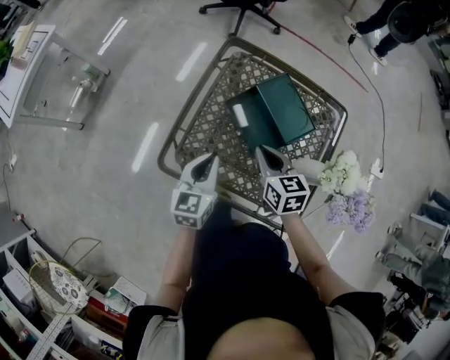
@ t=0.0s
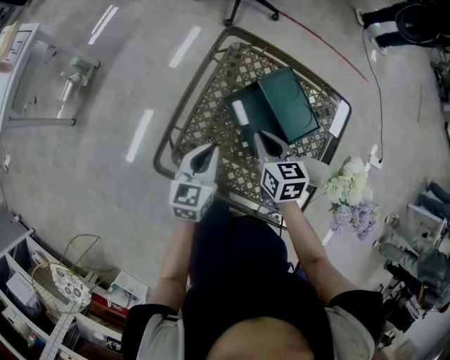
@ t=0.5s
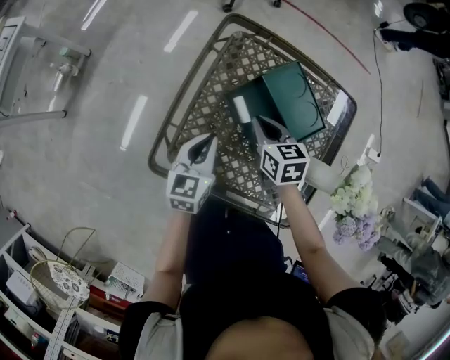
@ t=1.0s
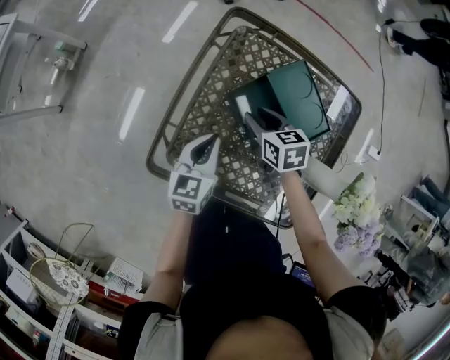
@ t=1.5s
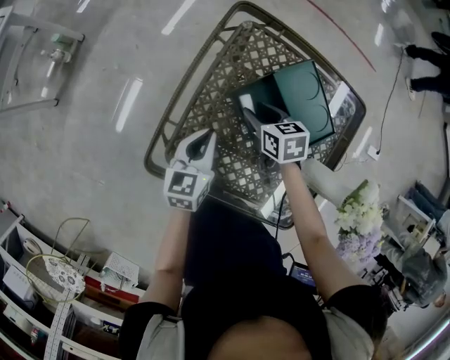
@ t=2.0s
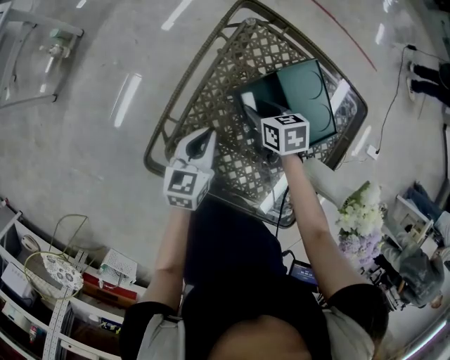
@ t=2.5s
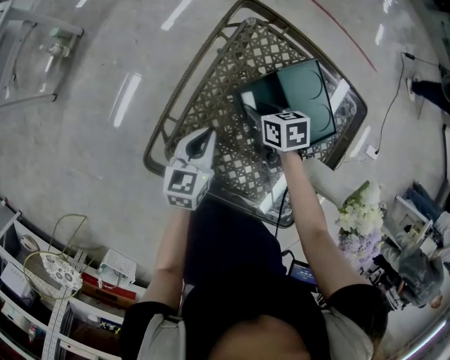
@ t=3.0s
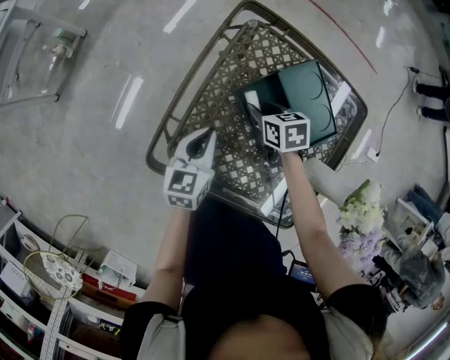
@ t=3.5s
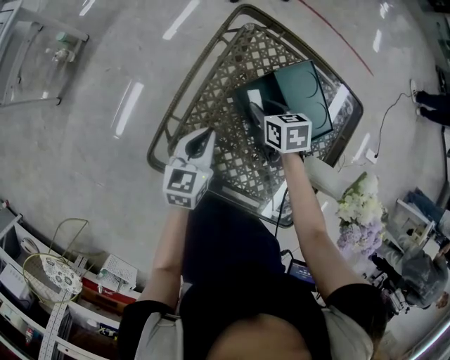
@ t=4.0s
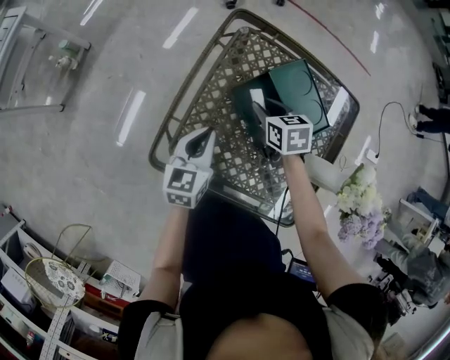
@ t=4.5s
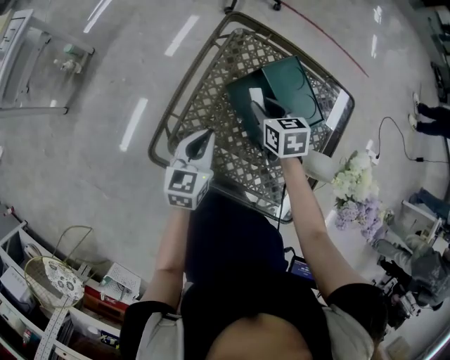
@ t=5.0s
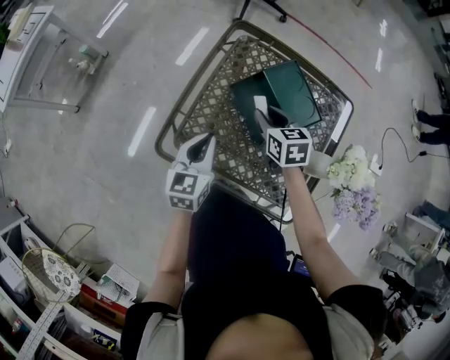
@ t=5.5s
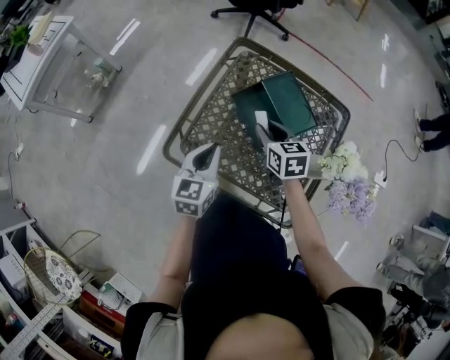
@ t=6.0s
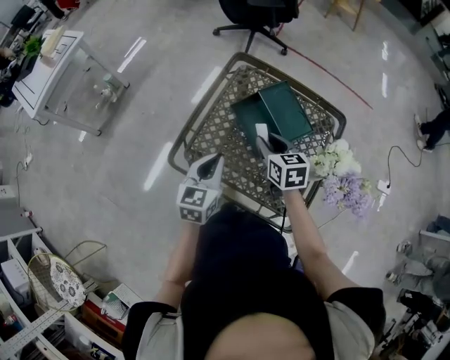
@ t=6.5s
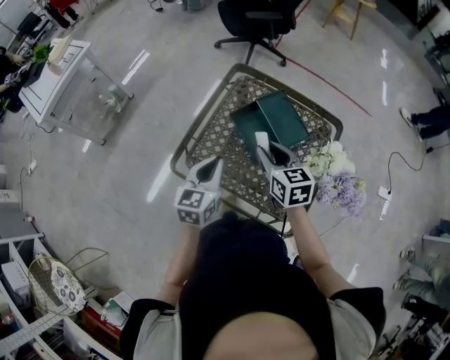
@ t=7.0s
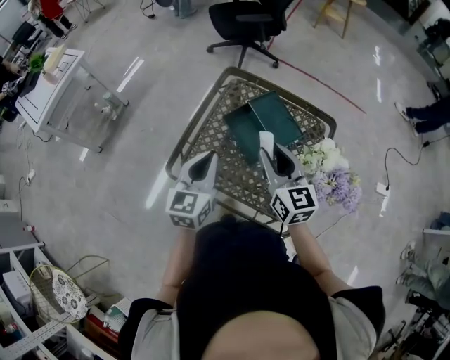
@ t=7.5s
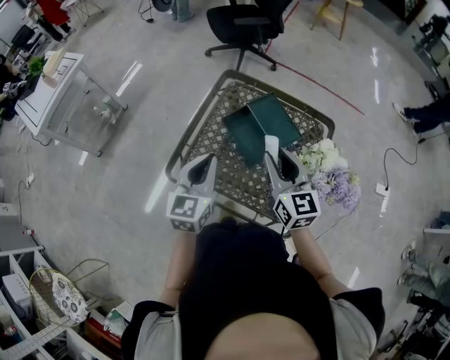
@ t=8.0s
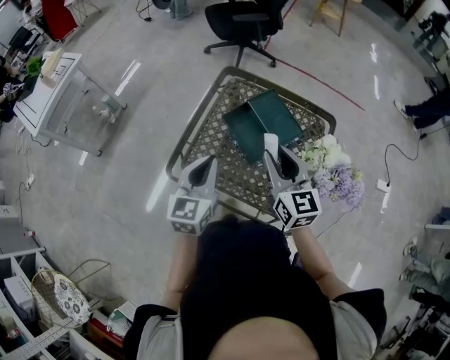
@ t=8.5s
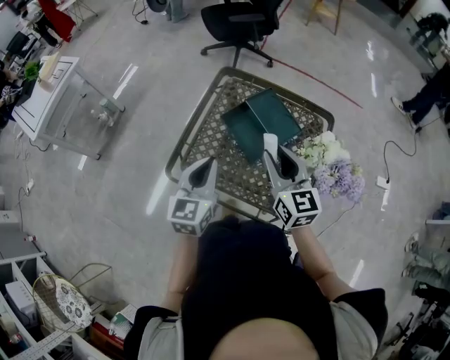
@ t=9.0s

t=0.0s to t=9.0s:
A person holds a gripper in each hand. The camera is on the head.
t=0.0s to t=2.0s: The two grippers go approximately 15 cm downward and forward. The right gripper opens its fingers.
t=2.0s to t=4.5s: There are only small adjustments of the grippers.
t=4.5s to t=7.0s: The two grippers go roughly 20 cm upward and backward. The right gripper turns by some 20 degrees.
t=7.0s to t=9.0s: The right gripper moves upward, approximately 5 cm, and turns by some 20 degrees.

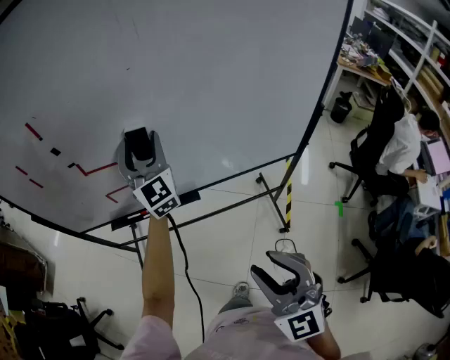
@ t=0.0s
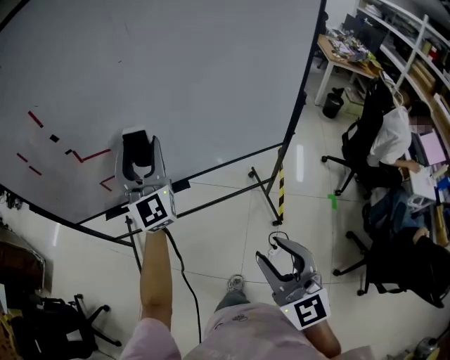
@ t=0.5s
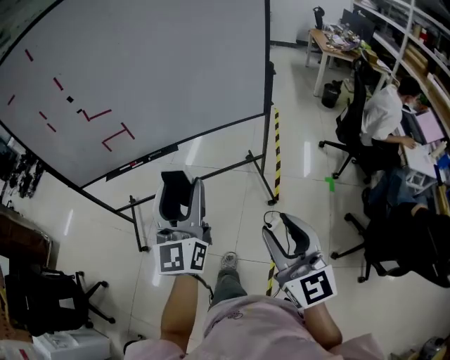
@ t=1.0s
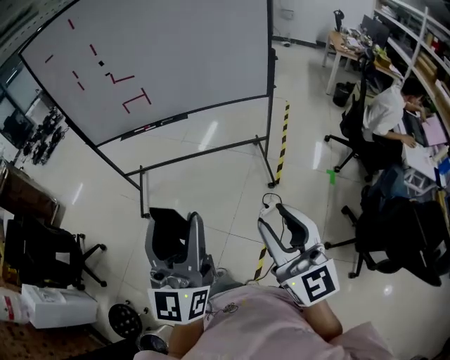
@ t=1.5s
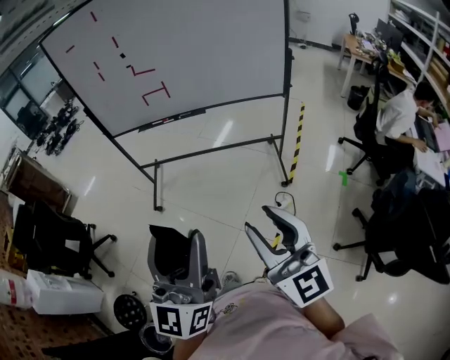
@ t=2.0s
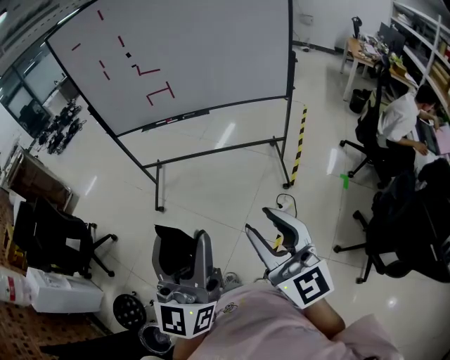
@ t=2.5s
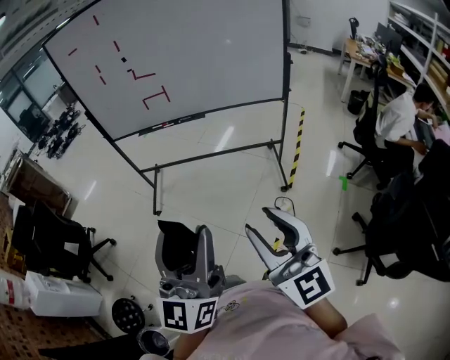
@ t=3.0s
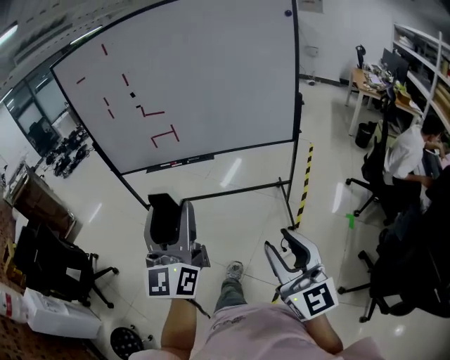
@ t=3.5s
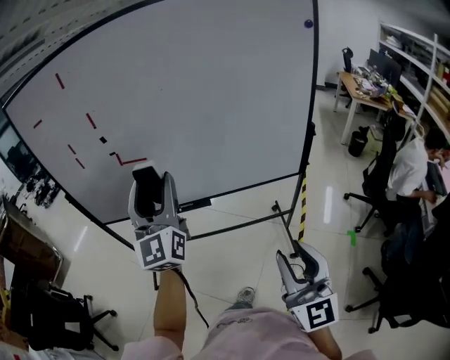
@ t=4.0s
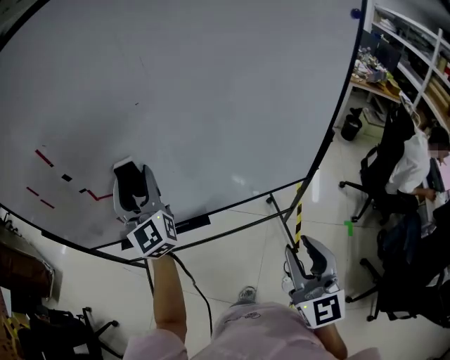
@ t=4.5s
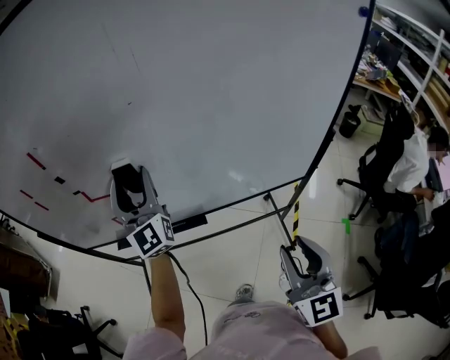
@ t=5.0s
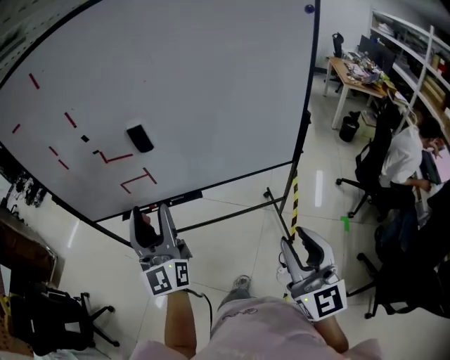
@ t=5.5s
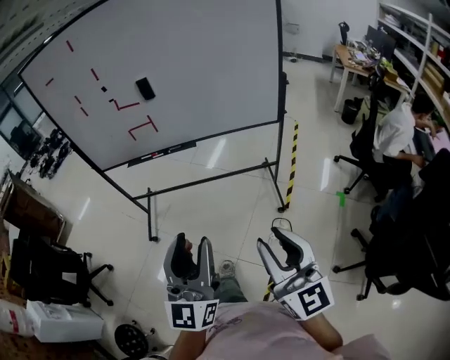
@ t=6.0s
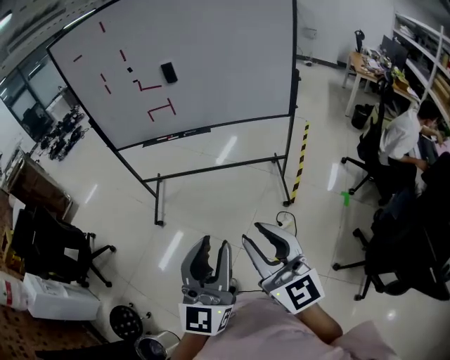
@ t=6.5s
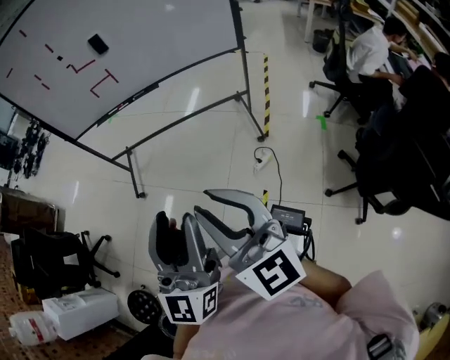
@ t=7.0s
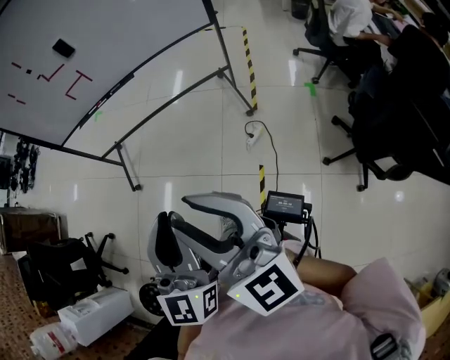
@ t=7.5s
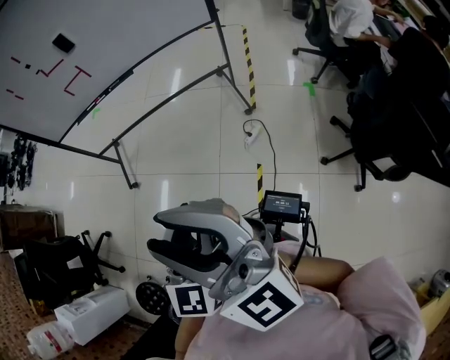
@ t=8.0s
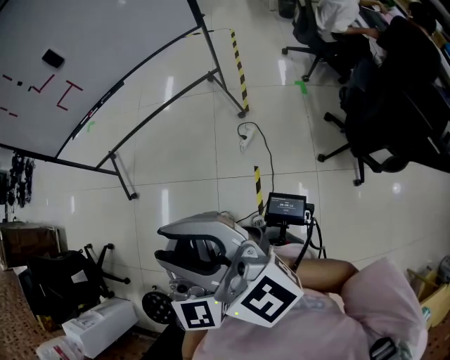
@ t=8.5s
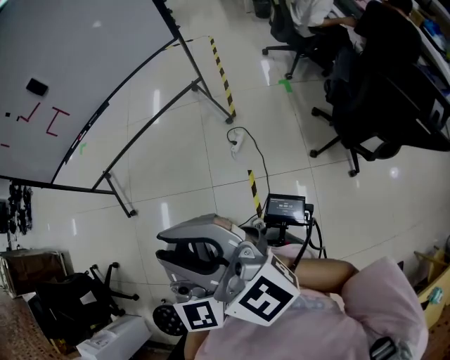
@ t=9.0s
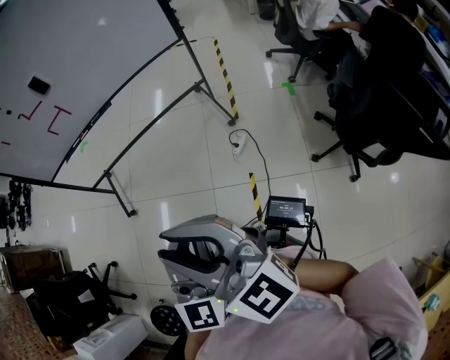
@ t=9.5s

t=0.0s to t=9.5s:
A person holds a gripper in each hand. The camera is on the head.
t=0.0s to t=2.0s: Both grippers are carried backward, roughly 60 cm. The right gripper changes its angle by approximately 30 degrees, while the left gripper rotates approximately 30 degrees.
t=2.0s to t=4.0s: The left gripper is displaced forward by roughly 50 cm. The right gripper travels forward by some 35 cm.
t=4.0s to t=5.5s: The right gripper travels forward and back again, approximately 20 cm each way. Meanwhile the left gripper travels downward by roughly 5 cm, and moves approximately 25 cm forward and comes back.
t=5.5s to t=7.5s: The pair of grippers is taken backward, approximately 50 cm. The left gripper rotates approximately 20 degrees, and closes.
t=7.5s to t=9.5s: The left gripper goes roughly 5 cm to the right.

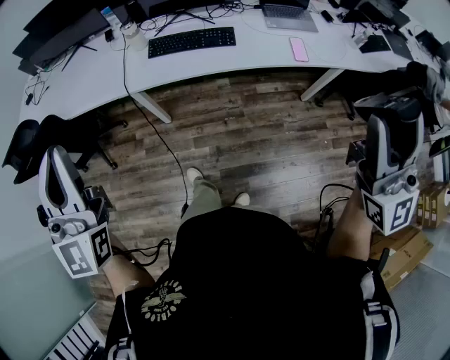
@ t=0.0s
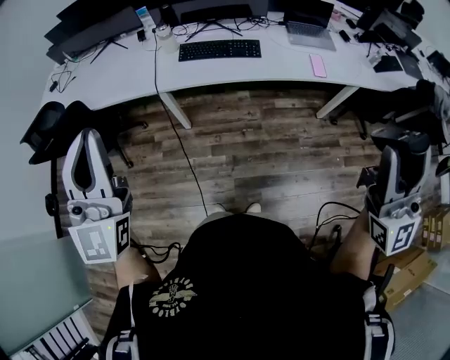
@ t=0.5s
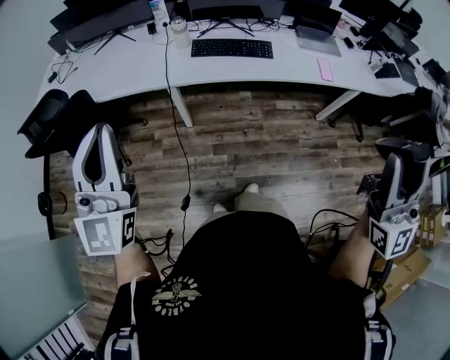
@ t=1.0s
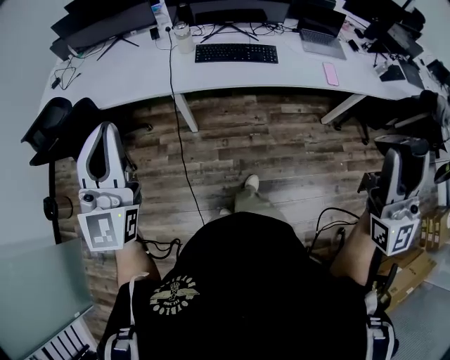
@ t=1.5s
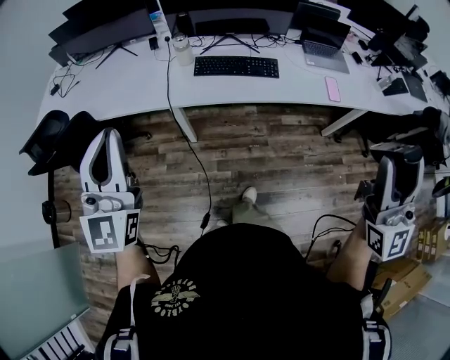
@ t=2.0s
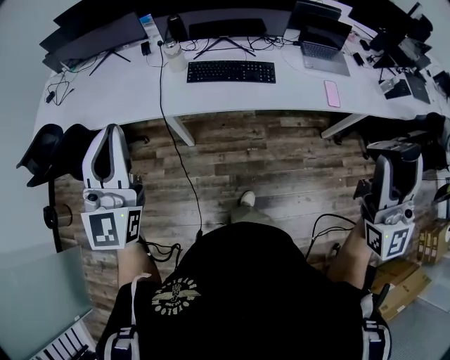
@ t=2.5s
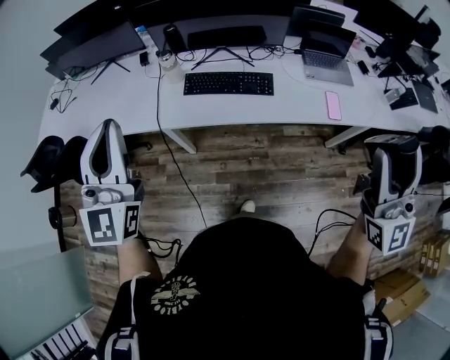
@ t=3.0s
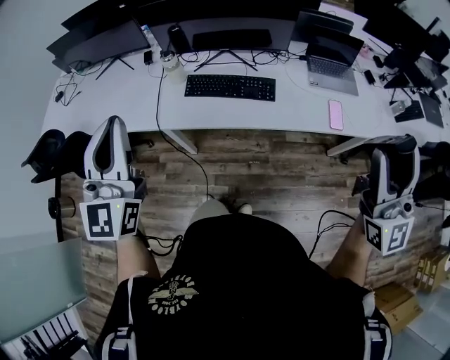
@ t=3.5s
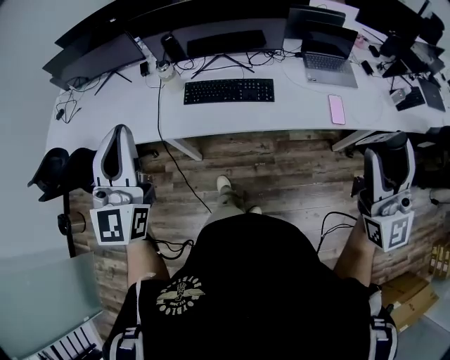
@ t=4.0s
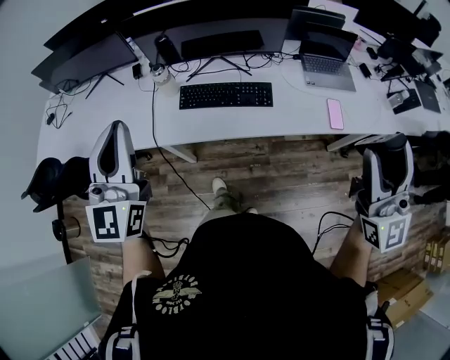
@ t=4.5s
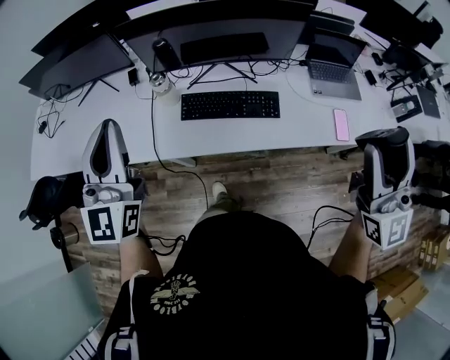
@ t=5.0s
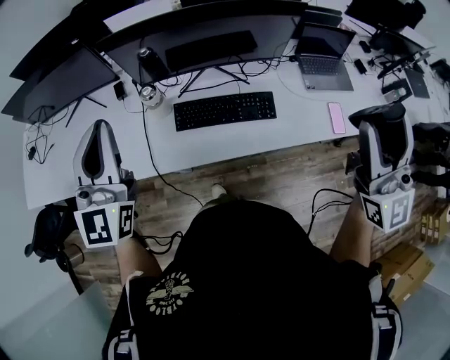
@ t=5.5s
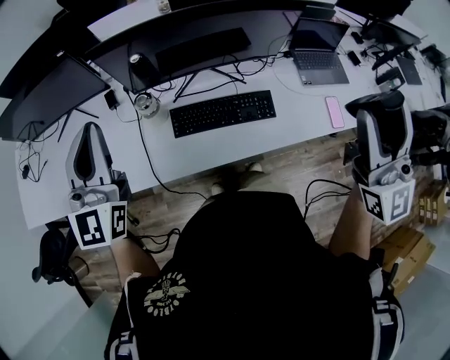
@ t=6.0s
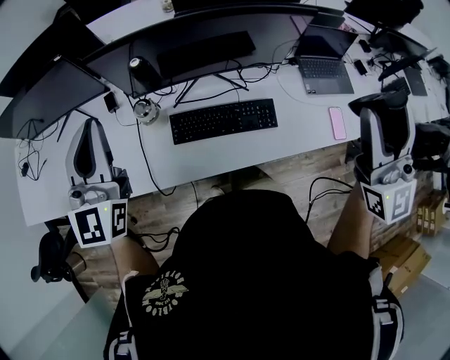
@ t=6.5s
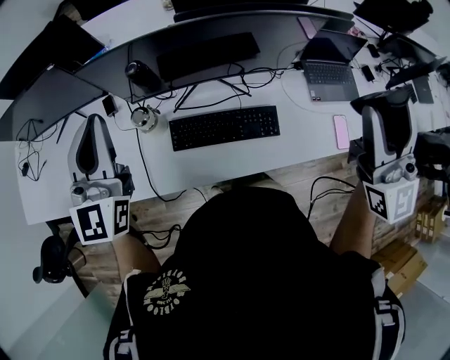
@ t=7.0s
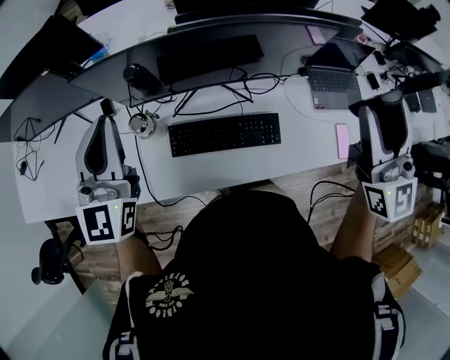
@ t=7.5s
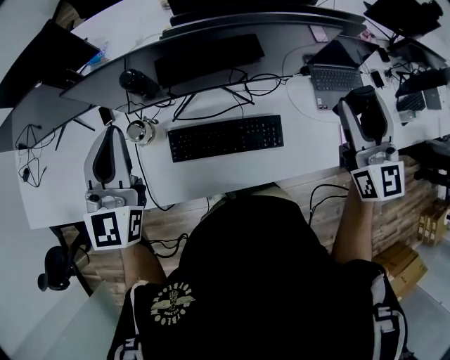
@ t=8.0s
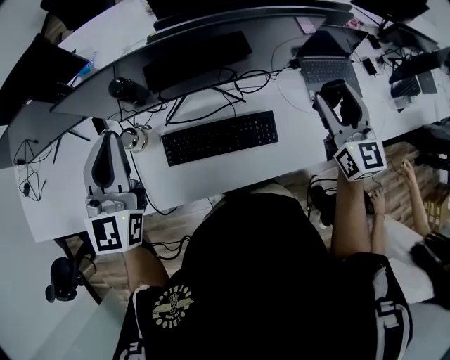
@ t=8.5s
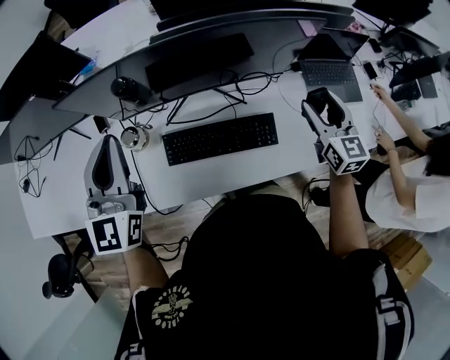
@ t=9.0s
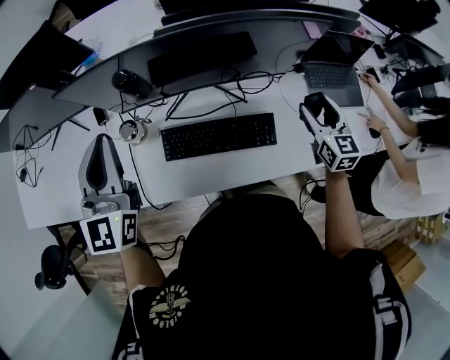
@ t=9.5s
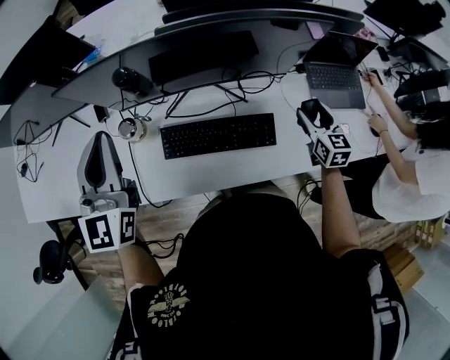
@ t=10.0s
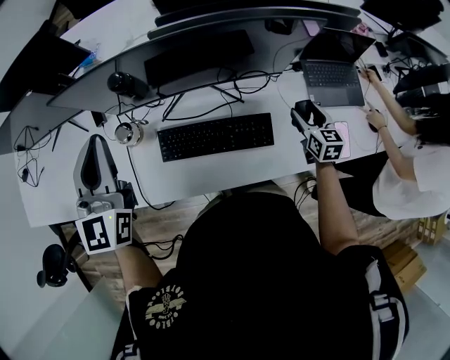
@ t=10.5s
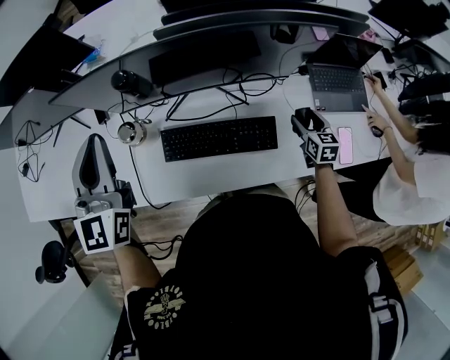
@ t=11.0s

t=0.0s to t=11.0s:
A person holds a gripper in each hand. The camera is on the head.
t=0.0s to t=2.0s: The right gripper travels to the left by some 10 cm. The left gripper shifts about 10 cm to the left and forward.
t=2.0s to t=3.5s: Both grippers travel together forward and to the right, about 20 cm.
t=3.5s to t=5.5s: The right gripper goes roughly 20 cm forward and to the left, while the left gripper moves forward, approximately 25 cm.
t=5.5s to t=7.5s: The two grippers go about 20 cm forward.
t=7.5s to t=9.0s: The right gripper goes approximately 25 cm downward, and rotates roughly 30 degrees.
t=9.0s to t=11.0s: The right gripper heads downward, covering about 20 cm, and rotates approximately 20 degrees.
